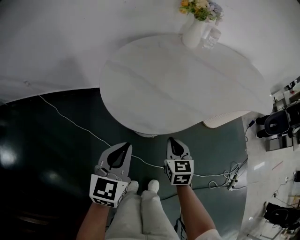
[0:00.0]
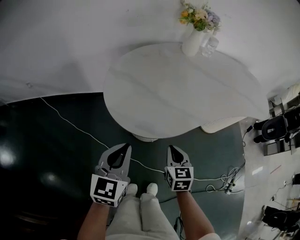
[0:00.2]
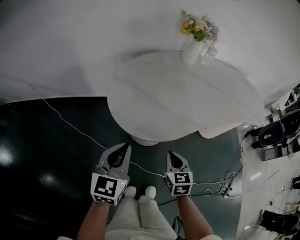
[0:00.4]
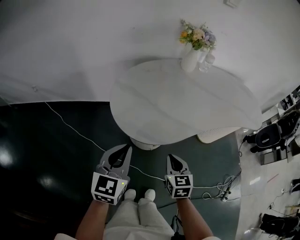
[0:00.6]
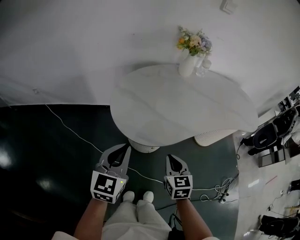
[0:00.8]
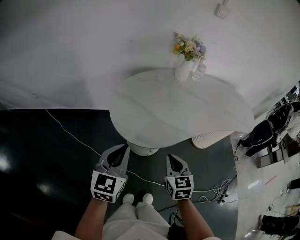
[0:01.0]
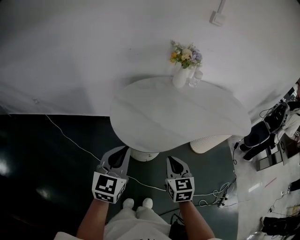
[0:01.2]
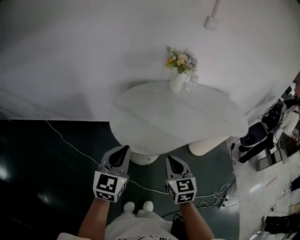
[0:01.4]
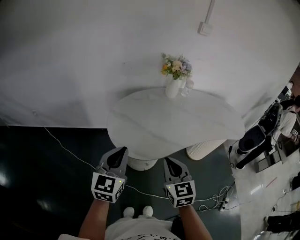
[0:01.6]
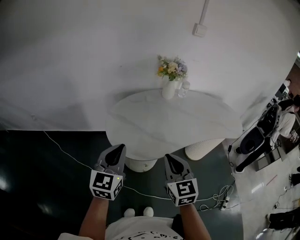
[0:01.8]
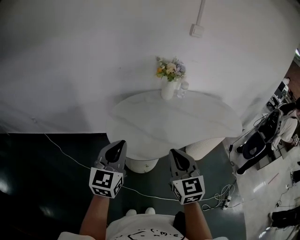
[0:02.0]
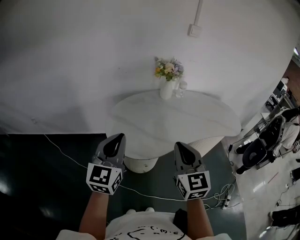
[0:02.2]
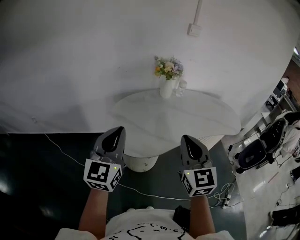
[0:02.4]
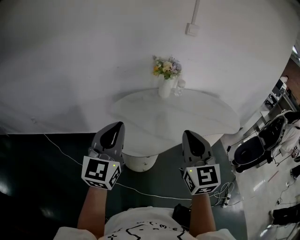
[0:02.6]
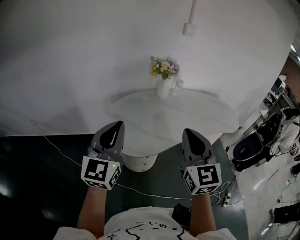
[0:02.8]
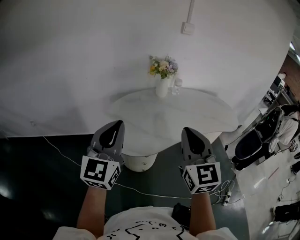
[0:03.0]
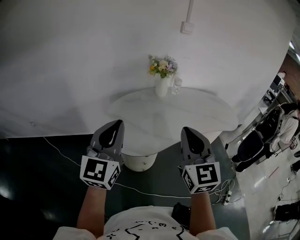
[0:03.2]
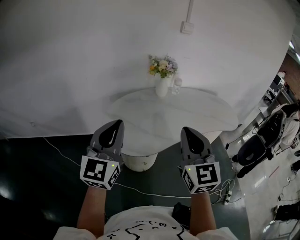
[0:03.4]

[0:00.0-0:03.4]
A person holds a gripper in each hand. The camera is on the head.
0:00.0 to 0:01.6: The two grippers go about 25 cm upward.
0:01.6 to 0:03.4: The grippers both shift upward by about 15 cm. The right gripper rotates some 20 degrees.

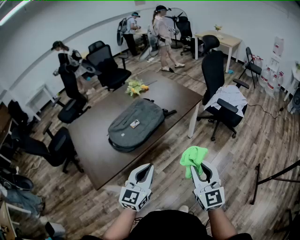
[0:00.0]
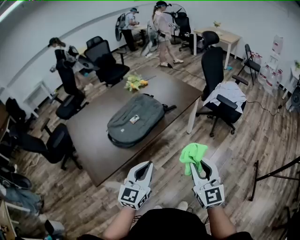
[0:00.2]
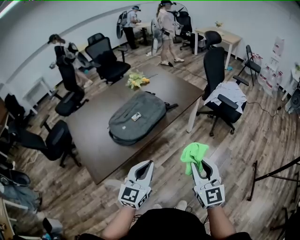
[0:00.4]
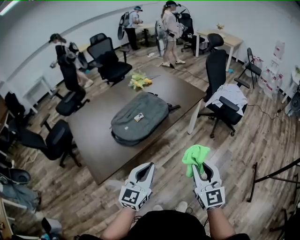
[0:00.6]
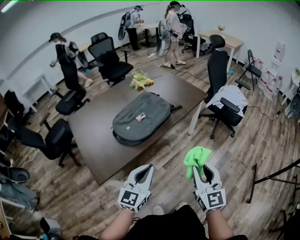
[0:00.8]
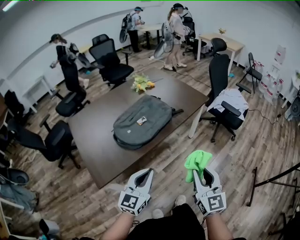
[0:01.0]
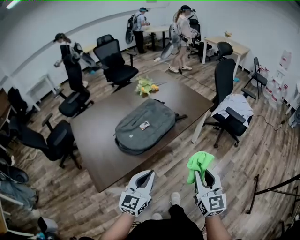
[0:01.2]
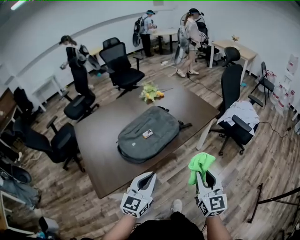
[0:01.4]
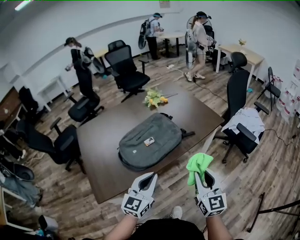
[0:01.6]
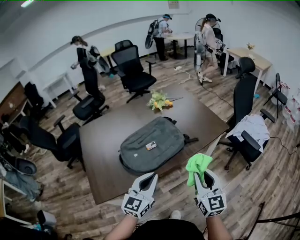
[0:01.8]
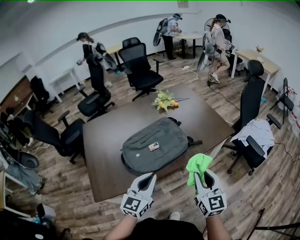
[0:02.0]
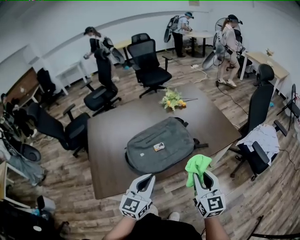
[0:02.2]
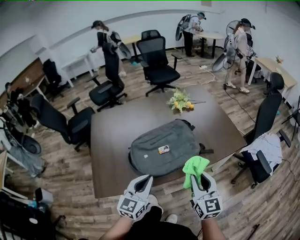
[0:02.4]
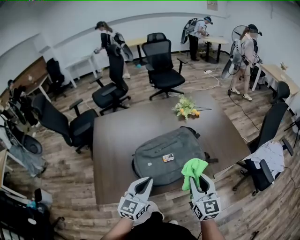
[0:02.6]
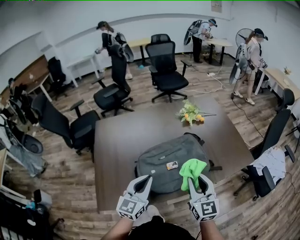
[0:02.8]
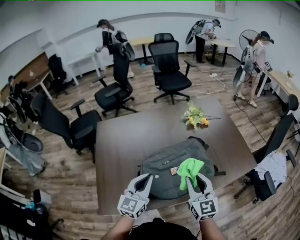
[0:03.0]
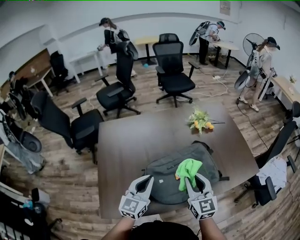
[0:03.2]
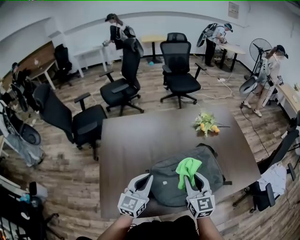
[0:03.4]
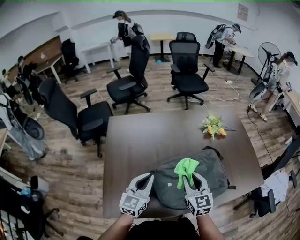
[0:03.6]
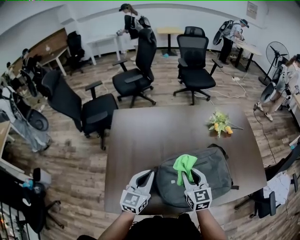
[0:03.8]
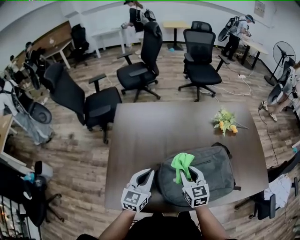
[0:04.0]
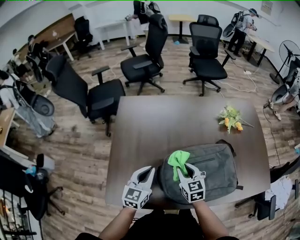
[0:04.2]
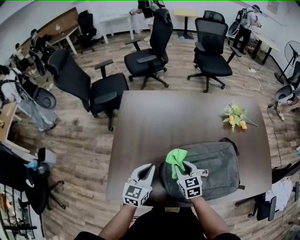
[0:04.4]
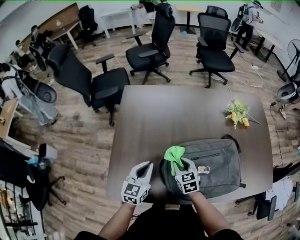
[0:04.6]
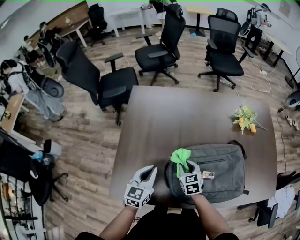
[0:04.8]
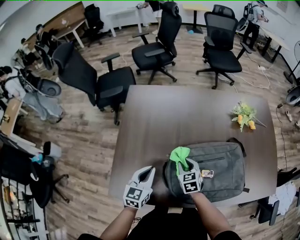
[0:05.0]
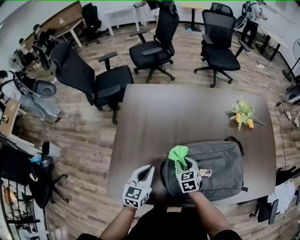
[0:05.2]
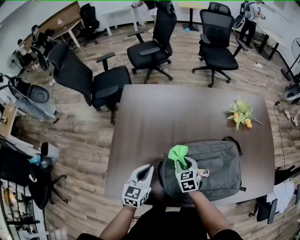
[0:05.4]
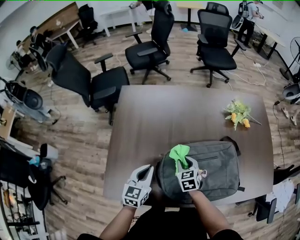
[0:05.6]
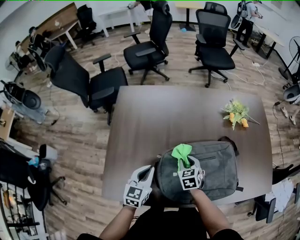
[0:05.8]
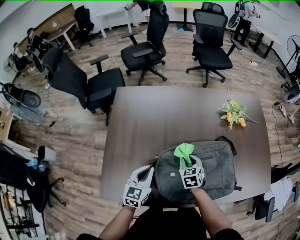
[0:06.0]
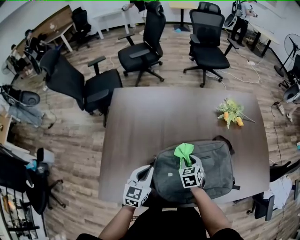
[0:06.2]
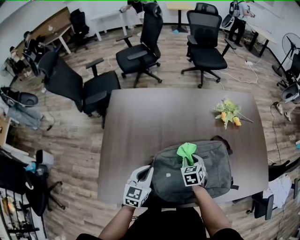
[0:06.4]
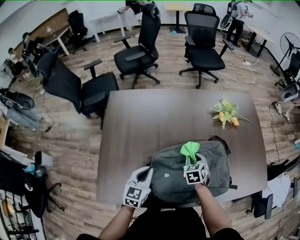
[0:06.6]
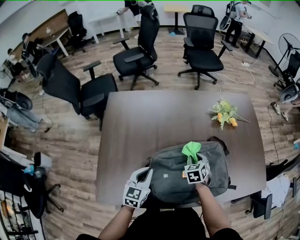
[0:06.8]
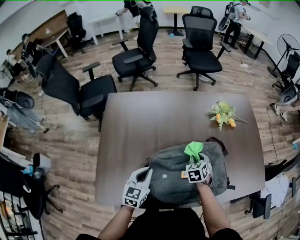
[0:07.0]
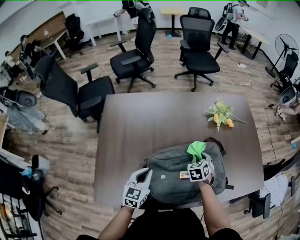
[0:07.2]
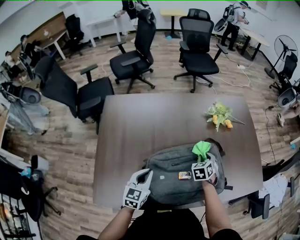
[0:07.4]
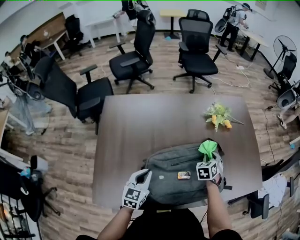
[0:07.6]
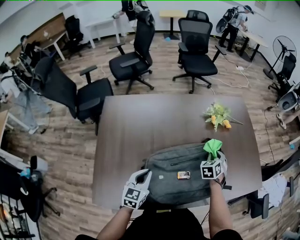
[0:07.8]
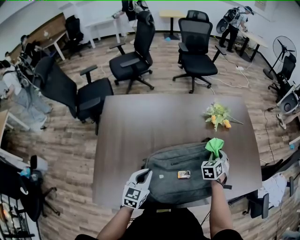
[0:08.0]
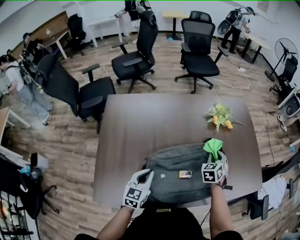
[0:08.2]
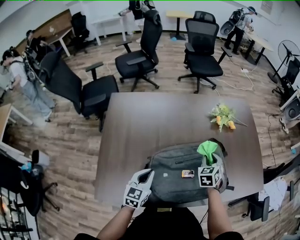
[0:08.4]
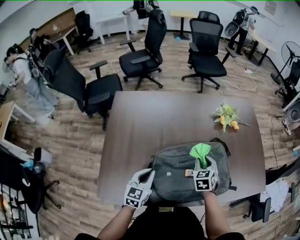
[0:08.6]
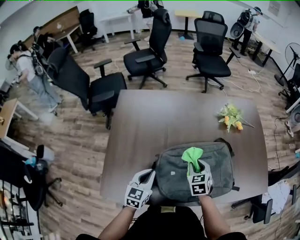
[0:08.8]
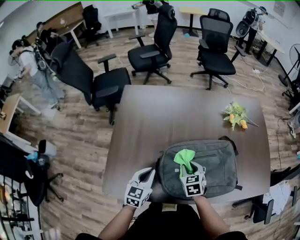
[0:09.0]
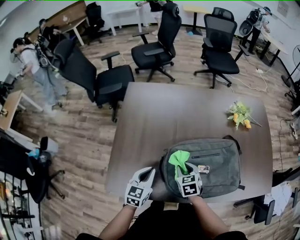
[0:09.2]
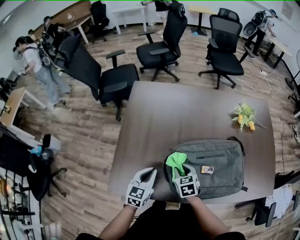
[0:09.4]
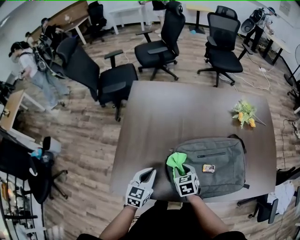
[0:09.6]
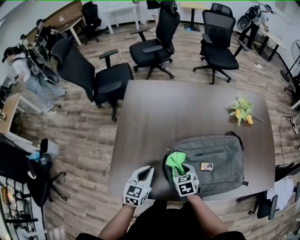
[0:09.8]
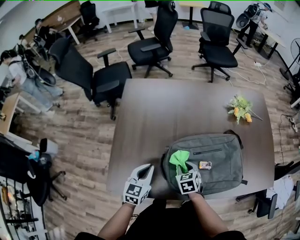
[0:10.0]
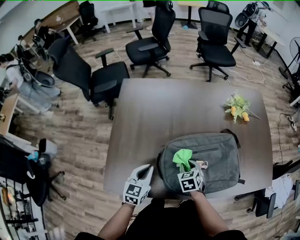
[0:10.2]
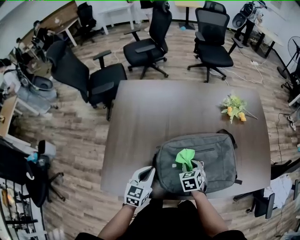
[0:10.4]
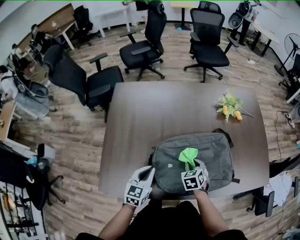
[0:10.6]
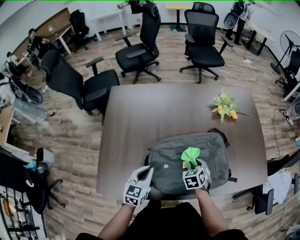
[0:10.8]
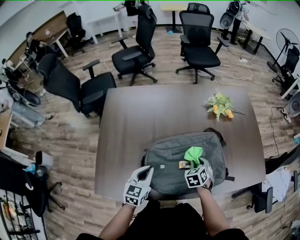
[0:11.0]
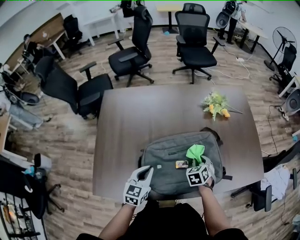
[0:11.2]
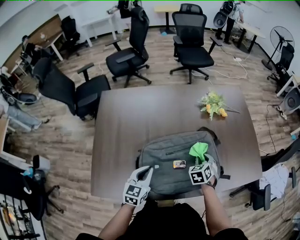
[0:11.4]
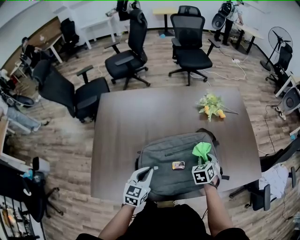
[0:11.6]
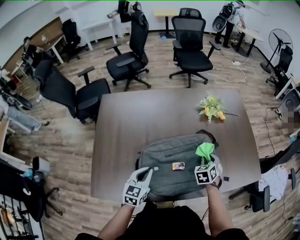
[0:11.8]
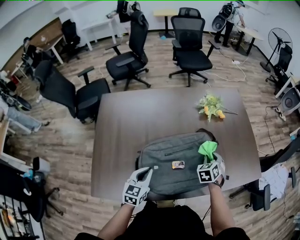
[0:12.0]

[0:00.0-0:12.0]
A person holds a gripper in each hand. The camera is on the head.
0:00.0 to 0:01.6: The left gripper travels forward and to the left by approximately 15 cm; the right gripper travels forward by about 15 cm.
0:01.6 to 0:03.0: The two grippers go about 25 cm forward and to the left. The left gripper swivels approximately 20 degrees, while the right gripper changes its angle by roughly 20 degrees.
0:03.0 to 0:04.4: The right gripper is displaced downward, to the left and forward by approximately 30 cm, and swivels approximately 40 degrees, while the left gripper travels to the left, downward and forward by approximately 20 cm, and turns by about 20 degrees.
0:04.4 to 0:06.0: The right gripper travels to the right by roughly 10 cm.
0:06.0 to 0:07.6: The right gripper goes about 20 cm to the right and forward, and changes its angle by approximately 30 degrees.
0:07.6 to 0:09.0: The left gripper changes place by approximately 5 cm. Meanwhile the right gripper ends up about 25 cm from where it was, and swivels approximately 30 degrees.
0:09.0 to 0:10.4: The right gripper goes to the left and returns, approximately 10 cm each way.
0:10.4 to 0:12.0: The left gripper shifts approximately 5 cm to the right; the right gripper goes some 20 cm to the right and forward, and swivels some 20 degrees.

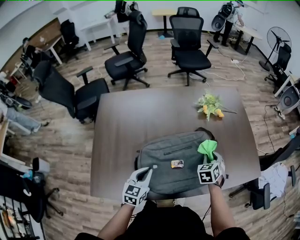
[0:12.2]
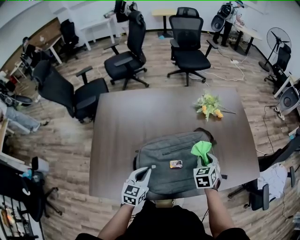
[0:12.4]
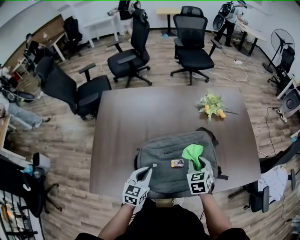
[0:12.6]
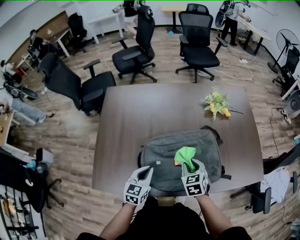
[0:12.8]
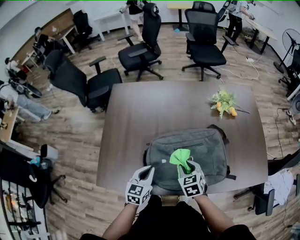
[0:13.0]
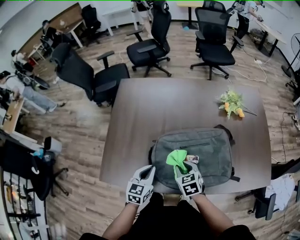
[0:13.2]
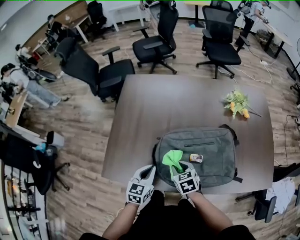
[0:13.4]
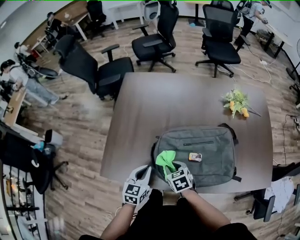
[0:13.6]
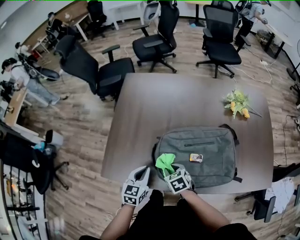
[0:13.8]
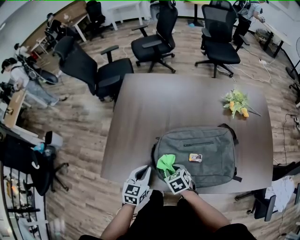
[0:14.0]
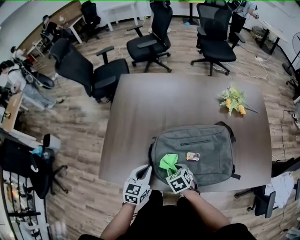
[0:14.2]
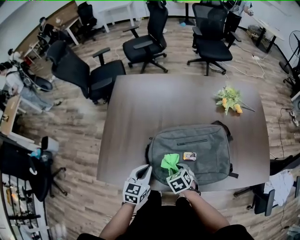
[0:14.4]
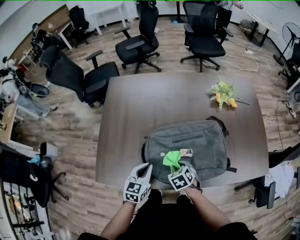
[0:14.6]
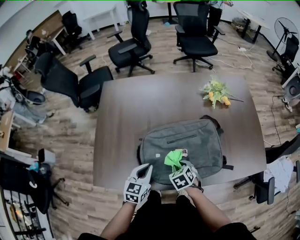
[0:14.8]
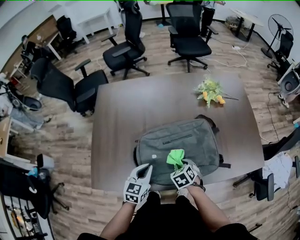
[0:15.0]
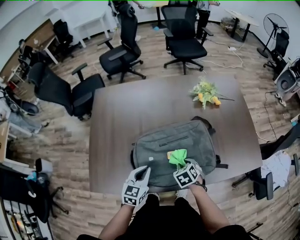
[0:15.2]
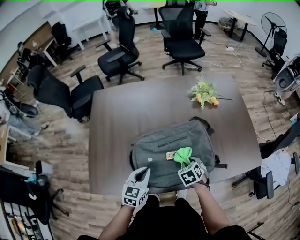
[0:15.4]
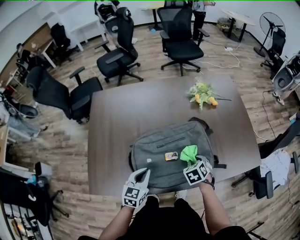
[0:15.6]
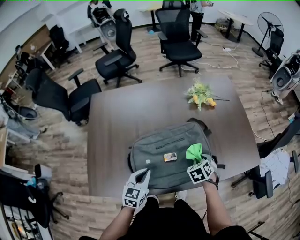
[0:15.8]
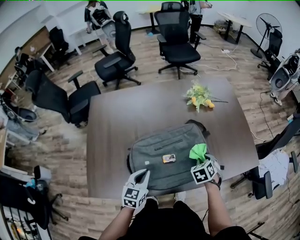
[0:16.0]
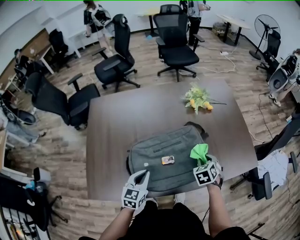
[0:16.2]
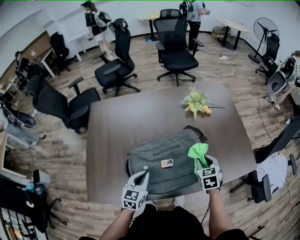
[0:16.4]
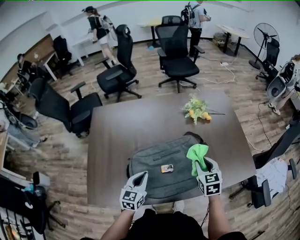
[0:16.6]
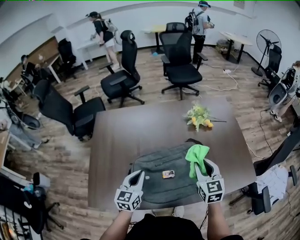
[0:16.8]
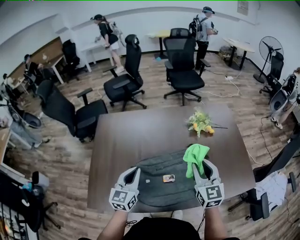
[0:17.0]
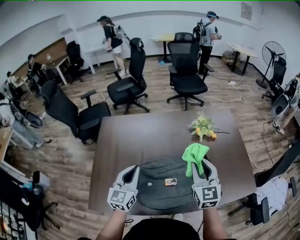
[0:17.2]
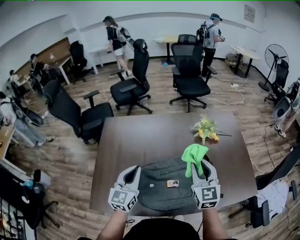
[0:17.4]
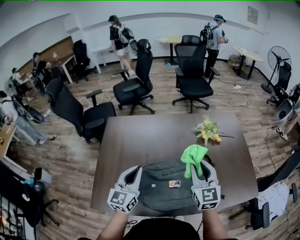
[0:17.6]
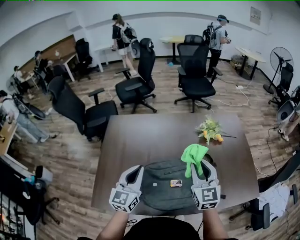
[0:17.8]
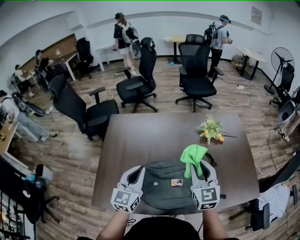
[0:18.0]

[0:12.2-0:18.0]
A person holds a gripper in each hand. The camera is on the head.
0:12.2 to 0:13.6: The right gripper ends up roughly 30 cm from where it was, and swivels roughly 50 degrees. Meanwhile the left gripper shifts by some 10 cm.
0:13.6 to 0:15.0: The right gripper shifts roughly 15 cm to the right, and turns by some 20 degrees. The left gripper travels to the right by some 10 cm.
0:15.0 to 0:16.6: The right gripper heads upward, to the right and forward, covering about 20 cm, and angles its fingers upward, by about 30 degrees. The left gripper changes place by roughly 5 cm.
0:16.6 to 0:18.0: The left gripper shifts roughly 15 cm upward, and rotates approximately 20 degrees. The right gripper shifts roughly 20 cm upward and to the left, and swivels roughly 30 degrees.

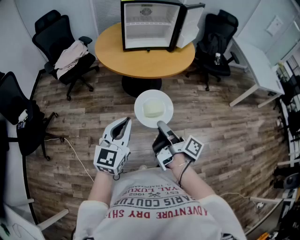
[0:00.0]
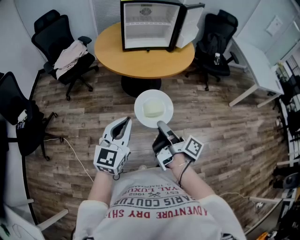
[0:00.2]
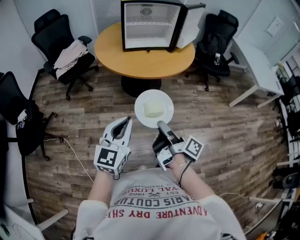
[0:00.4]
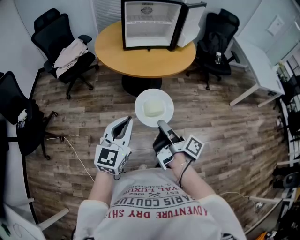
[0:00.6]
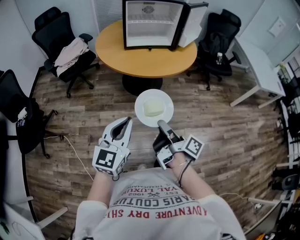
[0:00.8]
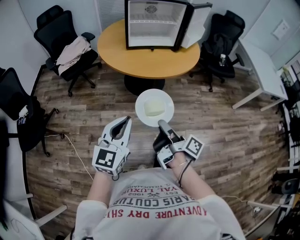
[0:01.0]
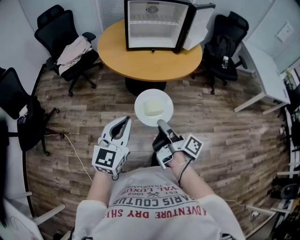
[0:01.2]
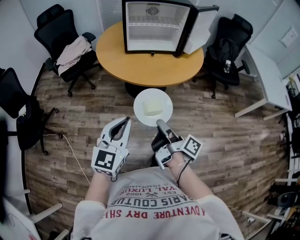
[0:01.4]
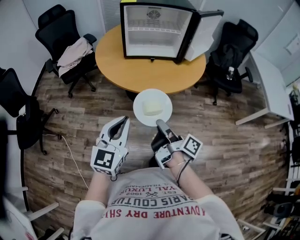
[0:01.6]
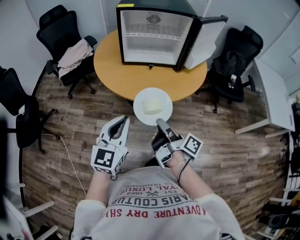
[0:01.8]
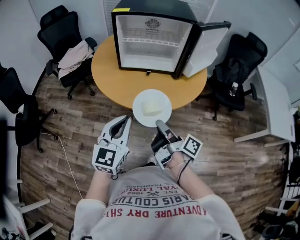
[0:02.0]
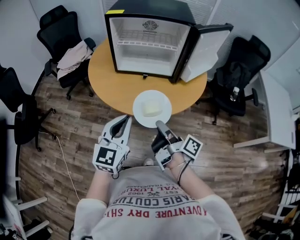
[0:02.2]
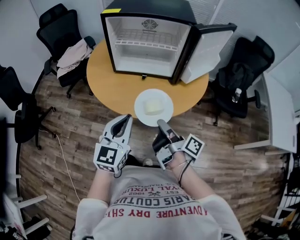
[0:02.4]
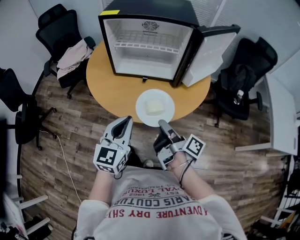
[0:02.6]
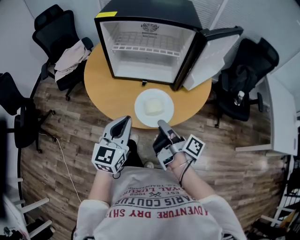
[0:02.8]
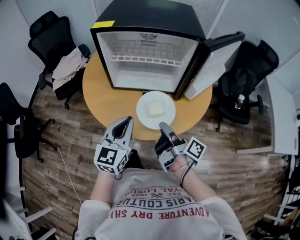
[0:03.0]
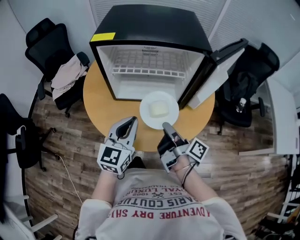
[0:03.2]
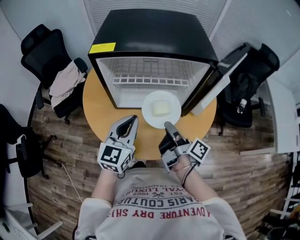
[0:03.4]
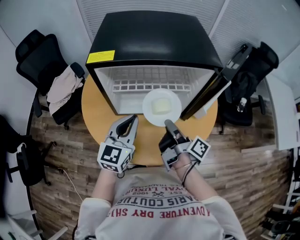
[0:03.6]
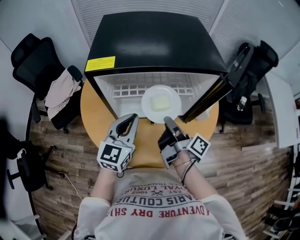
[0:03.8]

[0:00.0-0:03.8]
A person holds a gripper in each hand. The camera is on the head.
0:00.0 to 0:01.2: The left gripper ends up about 5 cm from where it was.
0:01.2 to 0:02.6: The left gripper shifts by about 35 cm.
0:02.6 to 0:03.8: The left gripper moves some 30 cm.
